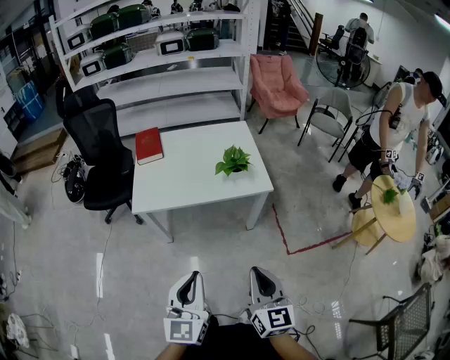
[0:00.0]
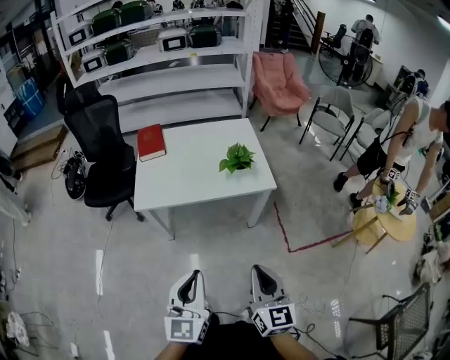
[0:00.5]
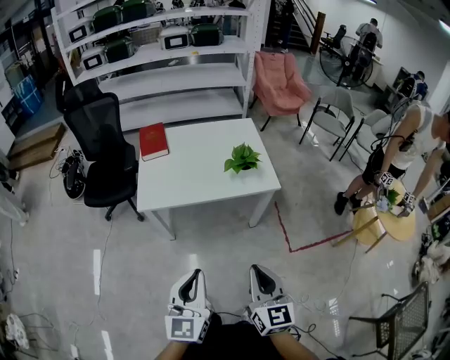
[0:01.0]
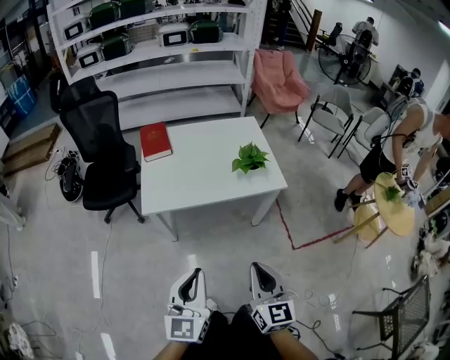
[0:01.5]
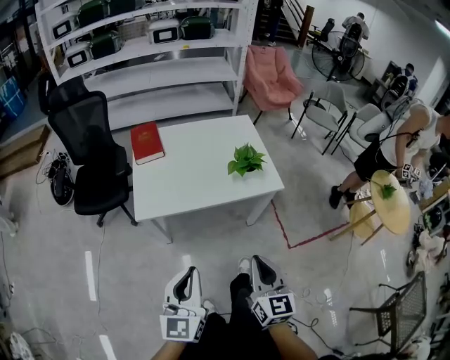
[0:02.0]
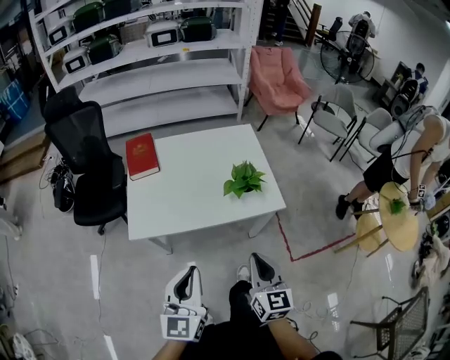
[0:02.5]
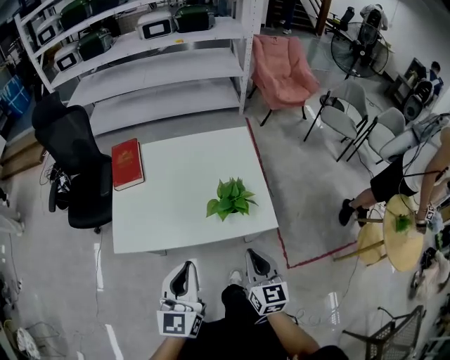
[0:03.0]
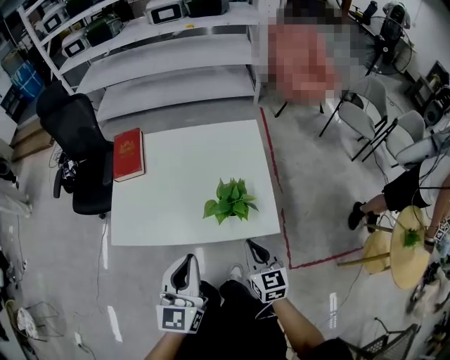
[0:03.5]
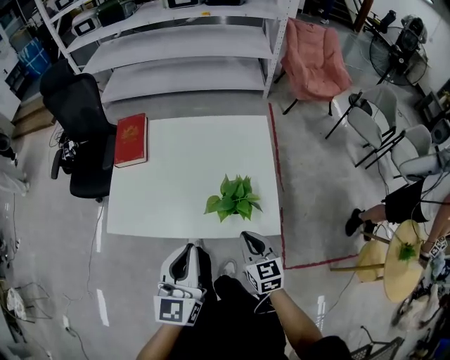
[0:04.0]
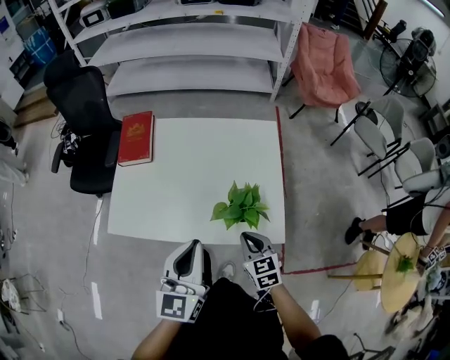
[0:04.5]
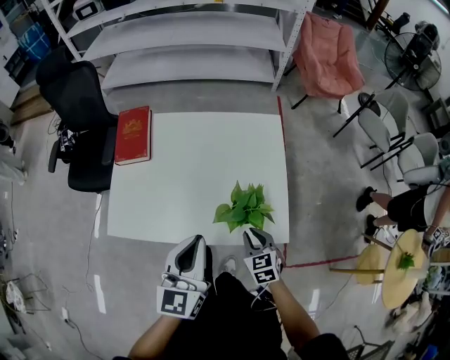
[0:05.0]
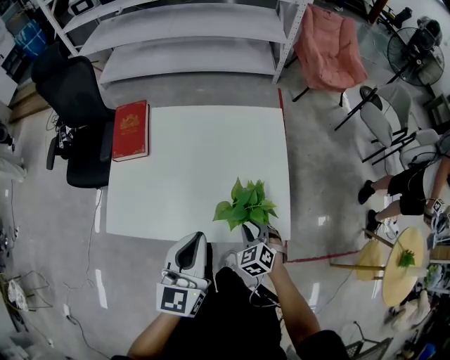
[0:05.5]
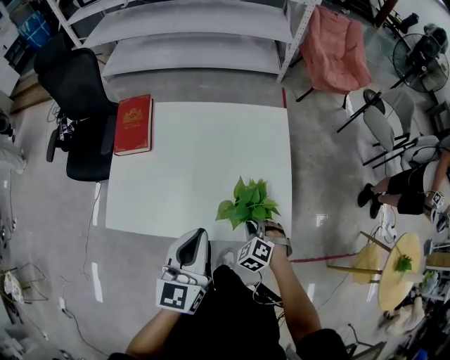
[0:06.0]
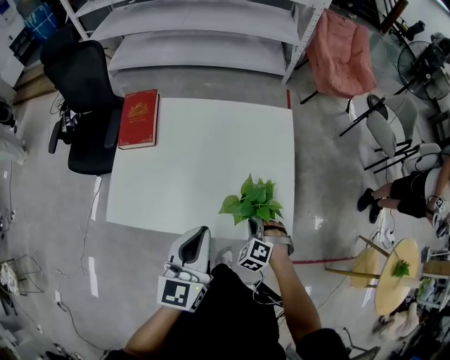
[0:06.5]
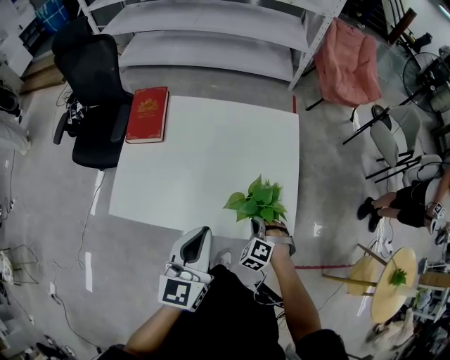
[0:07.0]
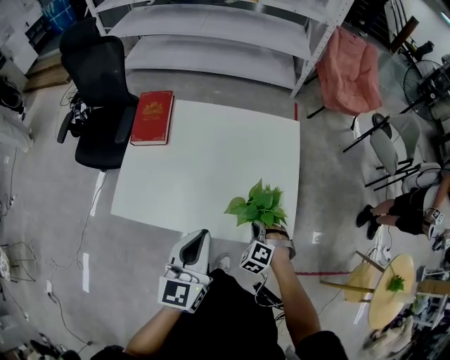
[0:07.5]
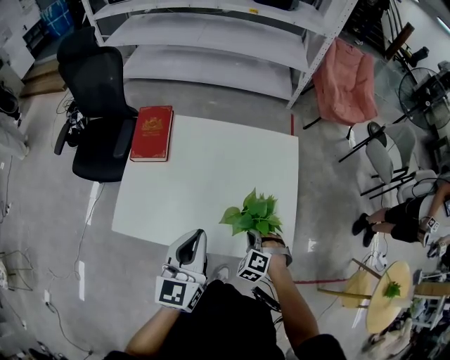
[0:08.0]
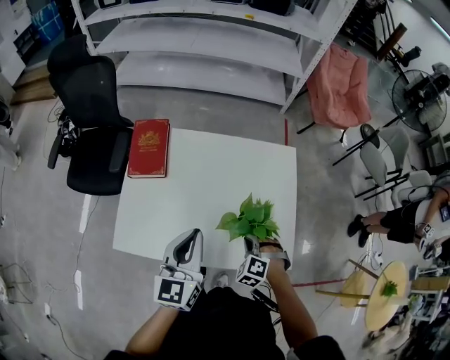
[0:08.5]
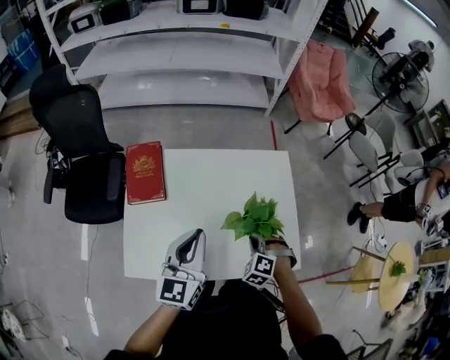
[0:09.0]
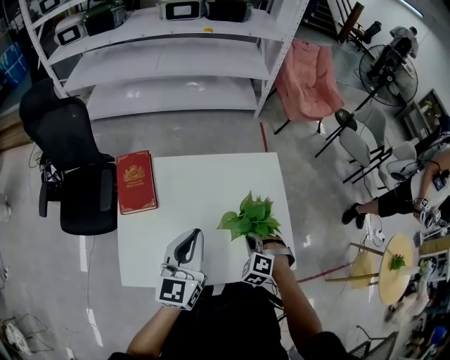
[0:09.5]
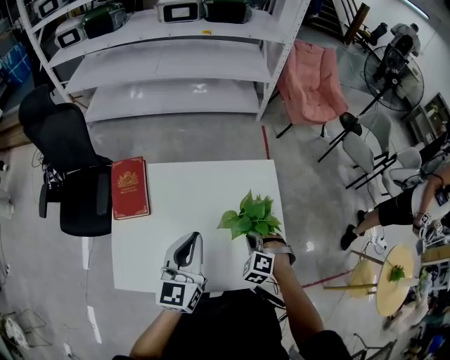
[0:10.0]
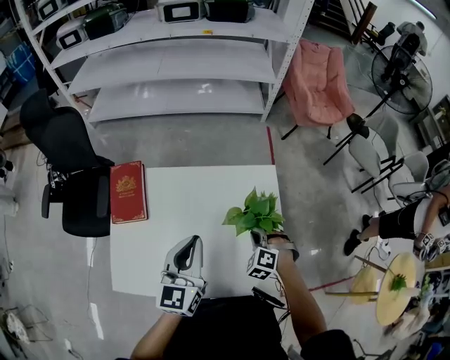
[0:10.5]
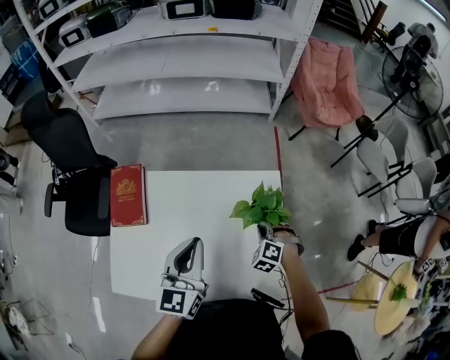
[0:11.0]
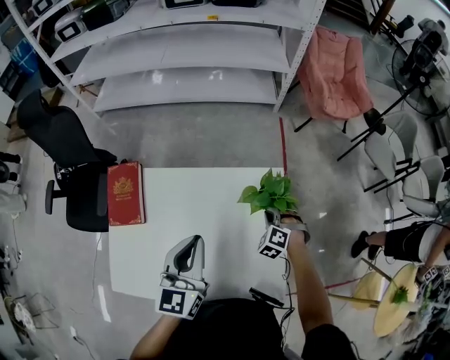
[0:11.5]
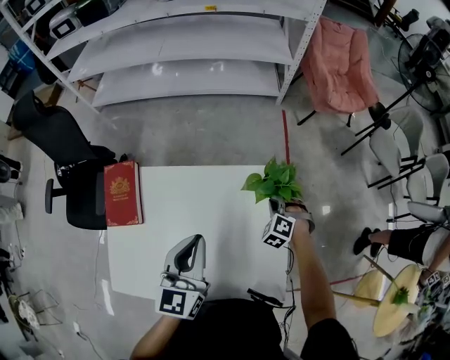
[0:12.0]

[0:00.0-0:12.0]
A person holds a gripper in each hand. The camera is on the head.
0:00.0 to 0:02.0: The grippers both shift to the left and forward by about 15 cm.
0:02.0 to 0:04.0: Both grippers move forward and to the right, about 40 cm. The right gripper rotates approximately 30 degrees.
0:04.0 to 0:06.0: The right gripper is displaced downward and forward by some 15 cm, and twists about 50 degrees counterclockwise, seen from behind; the left gripper goes roughly 10 cm forward.
0:06.0 to 0:08.0: The left gripper goes about 5 cm to the left.
0:08.0 to 0:10.0: The right gripper moves forward and upward, some 15 cm; the left gripper shifts some 15 cm forward.
0:10.0 to 0:12.0: The left gripper goes about 15 cm forward and to the right, while the right gripper moves forward and to the right, some 25 cm.

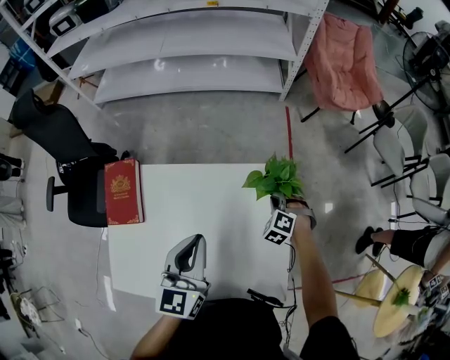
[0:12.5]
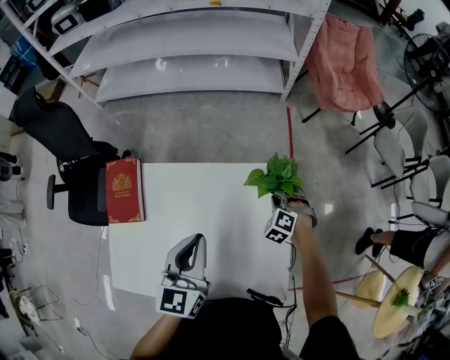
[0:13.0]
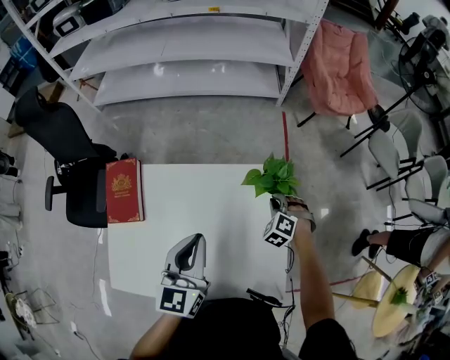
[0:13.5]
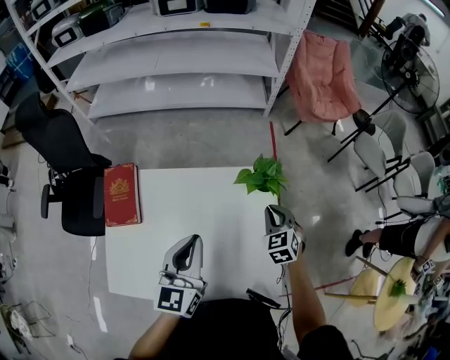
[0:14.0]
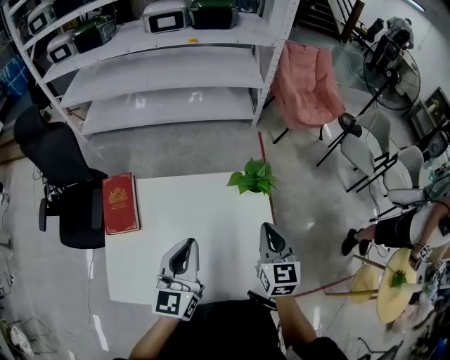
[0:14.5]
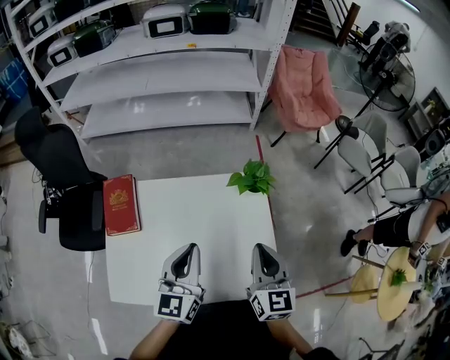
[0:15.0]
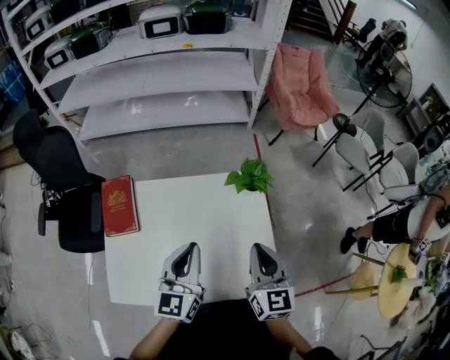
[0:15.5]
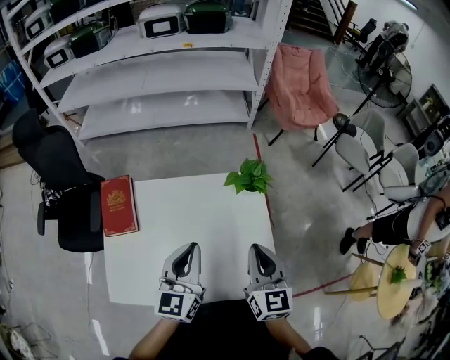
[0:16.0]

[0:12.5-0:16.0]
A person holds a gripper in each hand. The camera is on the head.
0:12.5 to 0:14.5: The left gripper shifts approximately 10 cm backward and upward. The right gripper goes about 30 cm upward and backward, and rotates around the line of its fingers by about 60 degrees, clockwise from behind.
0:14.5 to 0:16.0: The right gripper shifts some 5 cm backward.

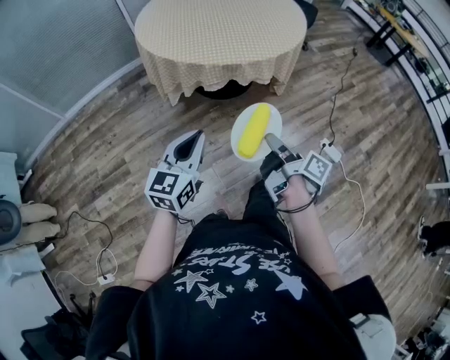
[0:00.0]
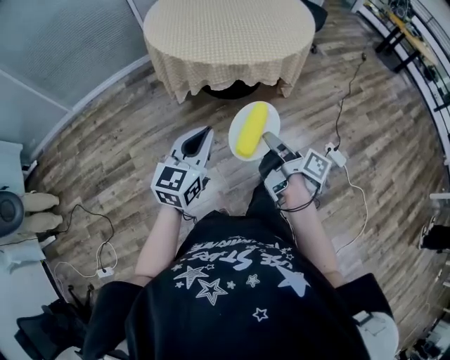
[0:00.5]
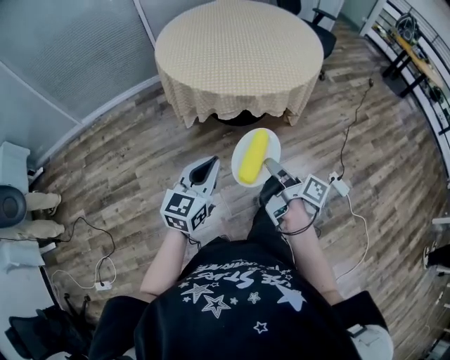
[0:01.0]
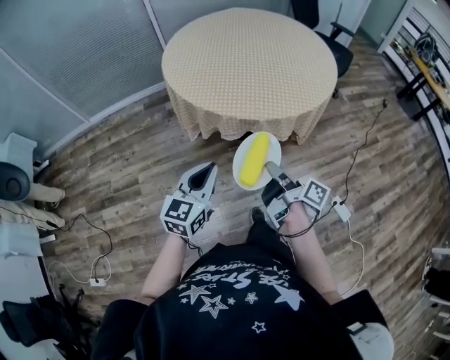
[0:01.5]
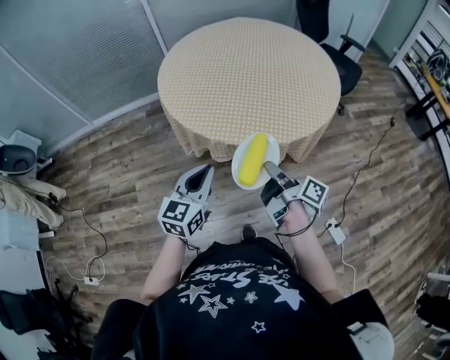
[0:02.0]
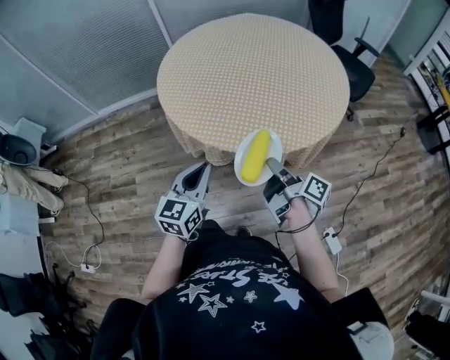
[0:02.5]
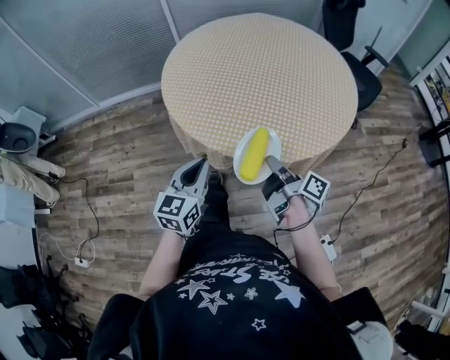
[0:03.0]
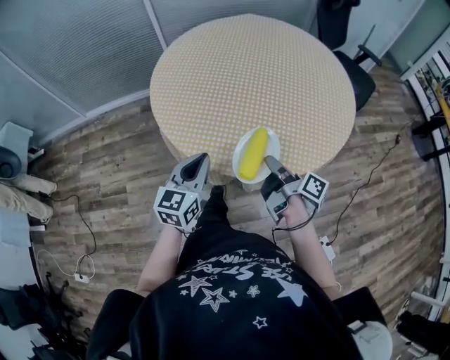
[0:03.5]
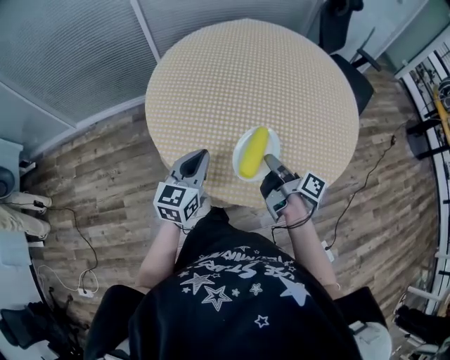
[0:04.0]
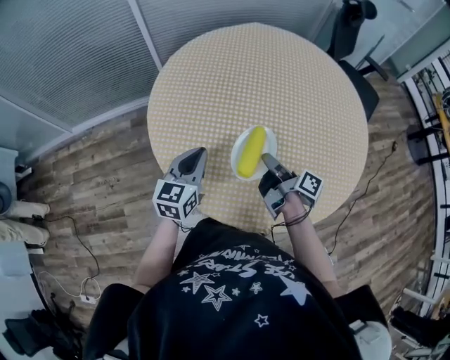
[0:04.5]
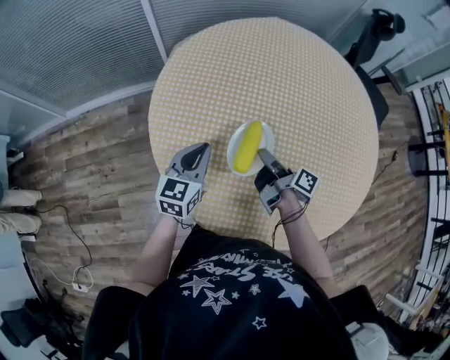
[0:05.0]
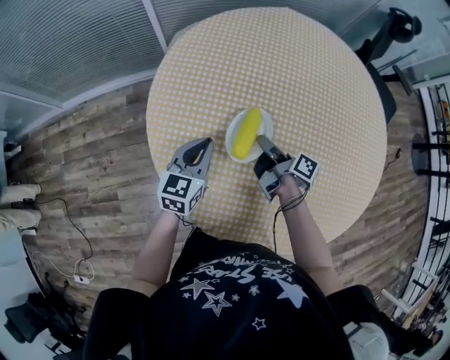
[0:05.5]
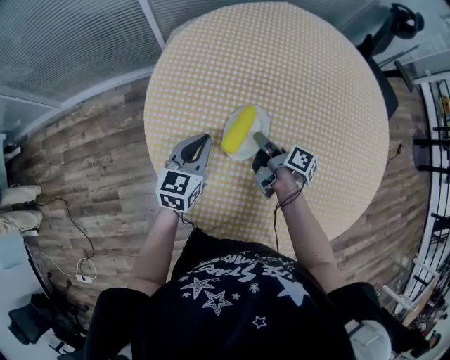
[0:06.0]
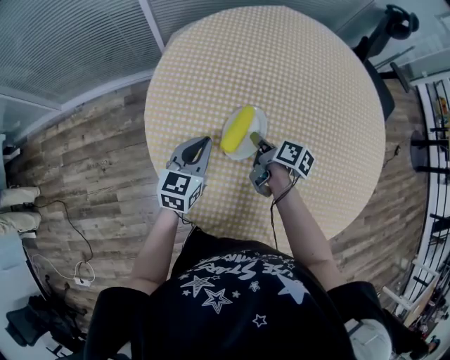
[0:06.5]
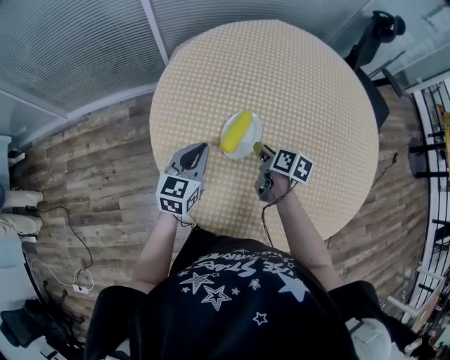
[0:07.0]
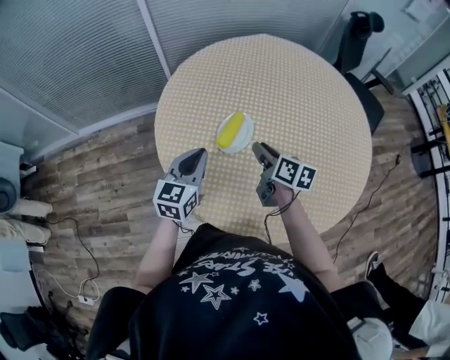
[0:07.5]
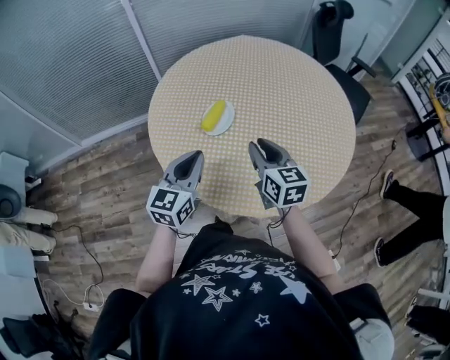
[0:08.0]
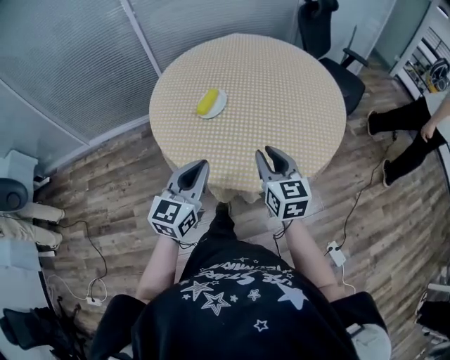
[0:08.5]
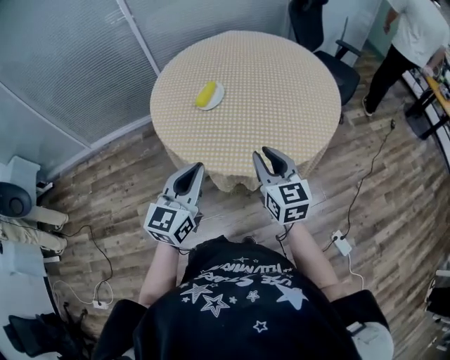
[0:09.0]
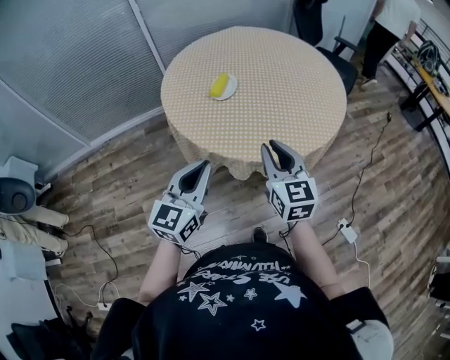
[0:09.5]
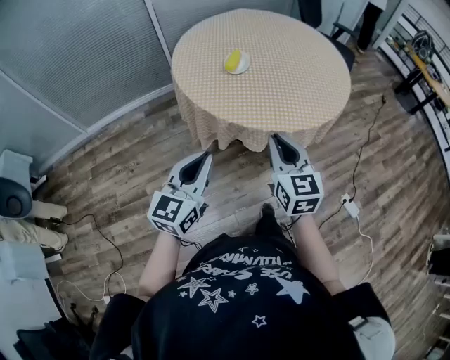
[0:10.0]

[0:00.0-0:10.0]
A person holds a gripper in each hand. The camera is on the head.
0:00.0 to 0:02.0: The right gripper heads forward, covering roughly 25 cm. The left gripper shifts some 25 cm forward and to the right.
0:02.0 to 0:04.0: Both grippers move forward, approximately 30 cm.
0:04.0 to 0:06.0: The left gripper goes some 25 cm forward and downward; the right gripper shifts some 30 cm forward, downward and to the left.
0:06.0 to 0:08.0: The two grippers go approximately 30 cm backward and upward. The right gripper rotates around the line of its fingers by some 70 degrees, counterclockwise from behind.
0:08.0 to 0:10.0: The grippers both shift backward by roughly 30 cm.

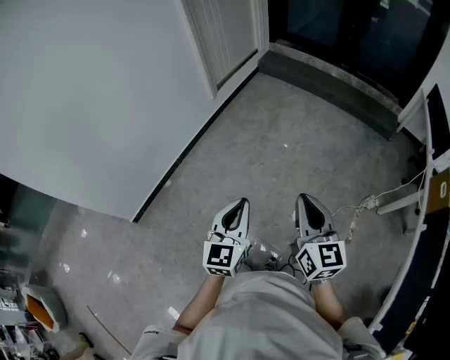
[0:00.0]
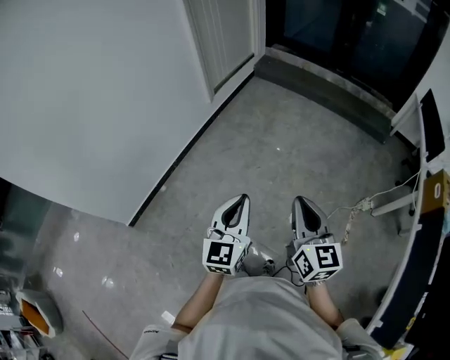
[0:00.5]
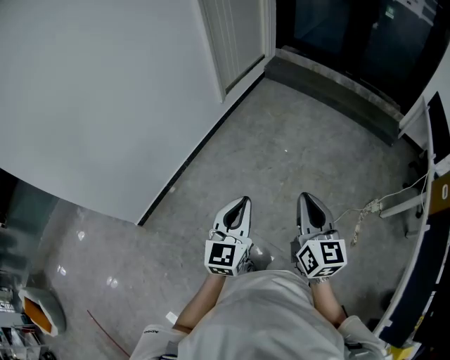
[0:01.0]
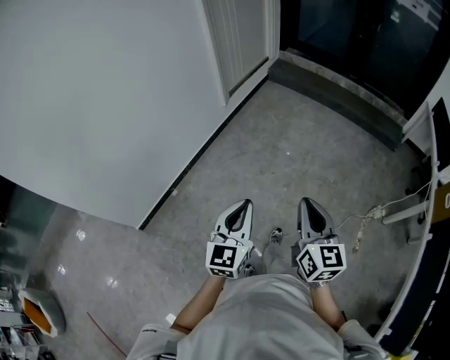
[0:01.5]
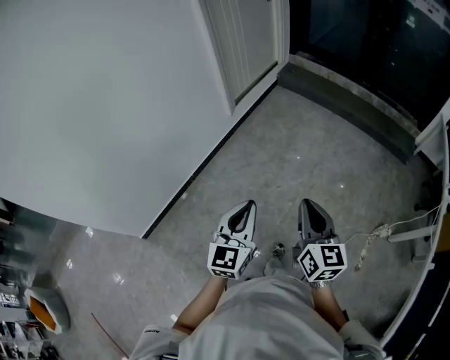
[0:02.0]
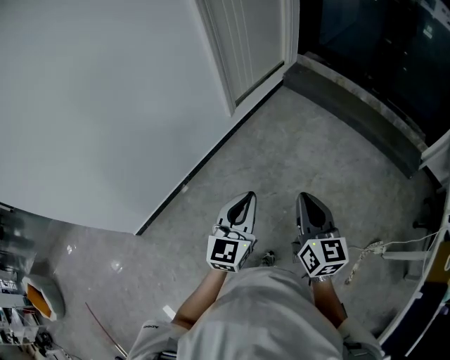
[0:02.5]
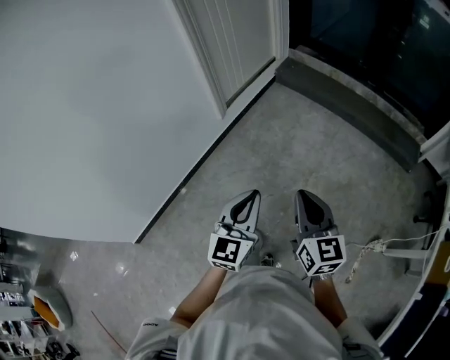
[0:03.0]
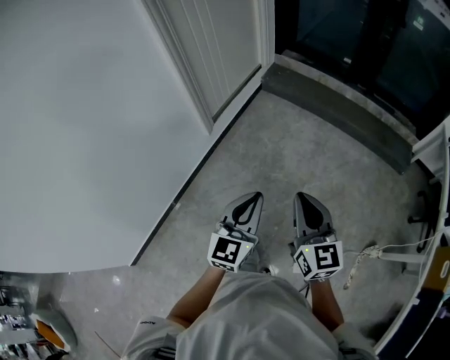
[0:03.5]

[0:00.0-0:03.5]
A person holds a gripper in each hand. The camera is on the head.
0:00.0 to 0:02.0: Both grippers move forward, roughly 20 cm.
0:02.0 to 0:03.5: The grippers both shift forward by roughly 35 cm.
